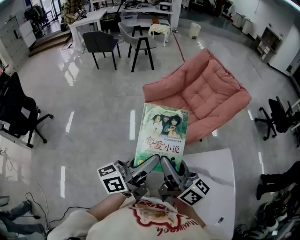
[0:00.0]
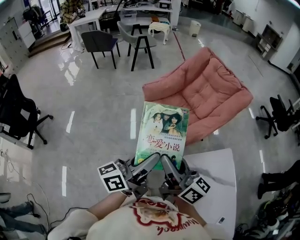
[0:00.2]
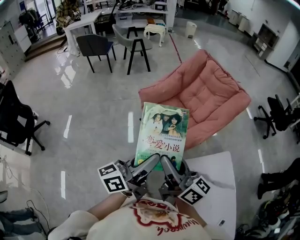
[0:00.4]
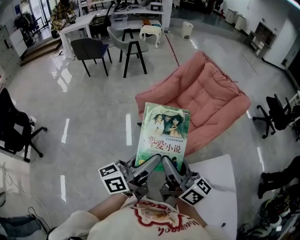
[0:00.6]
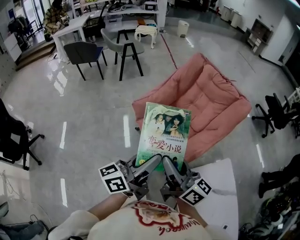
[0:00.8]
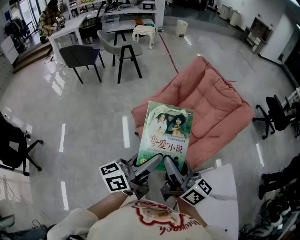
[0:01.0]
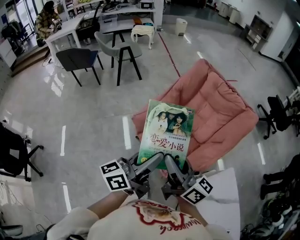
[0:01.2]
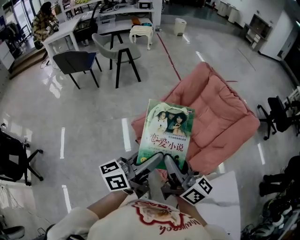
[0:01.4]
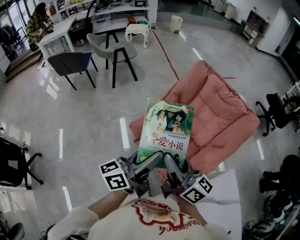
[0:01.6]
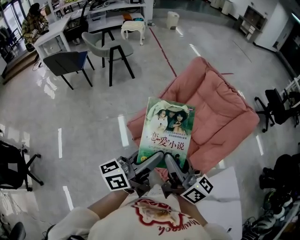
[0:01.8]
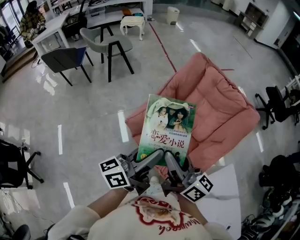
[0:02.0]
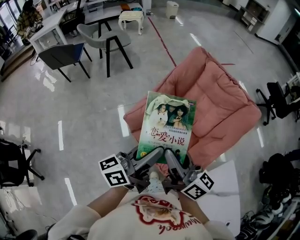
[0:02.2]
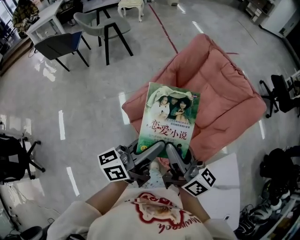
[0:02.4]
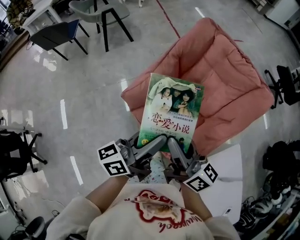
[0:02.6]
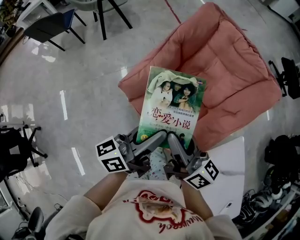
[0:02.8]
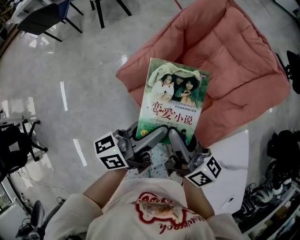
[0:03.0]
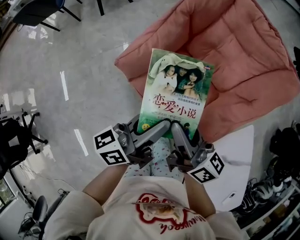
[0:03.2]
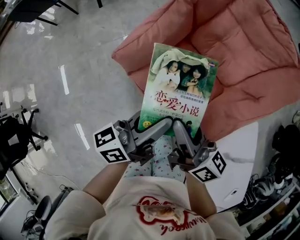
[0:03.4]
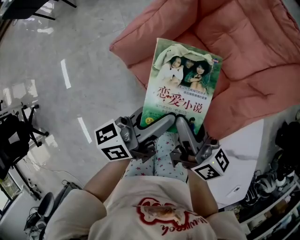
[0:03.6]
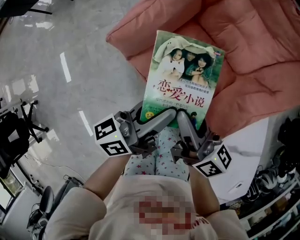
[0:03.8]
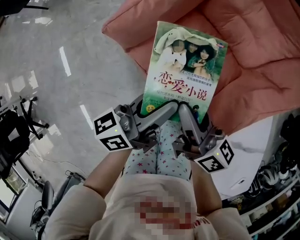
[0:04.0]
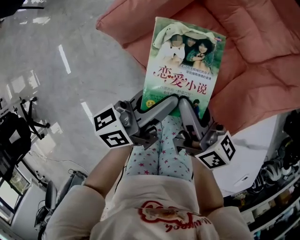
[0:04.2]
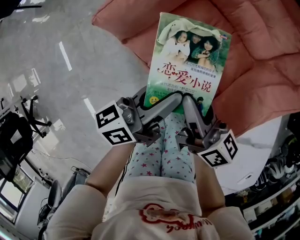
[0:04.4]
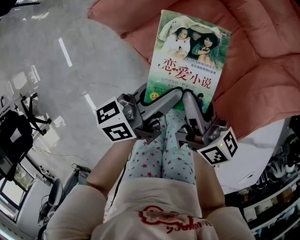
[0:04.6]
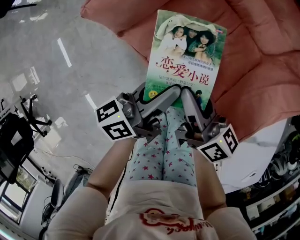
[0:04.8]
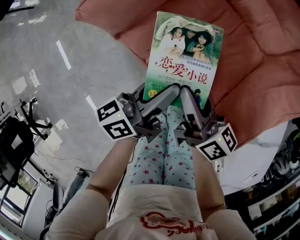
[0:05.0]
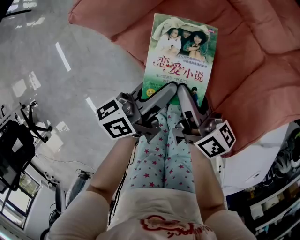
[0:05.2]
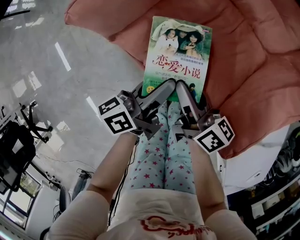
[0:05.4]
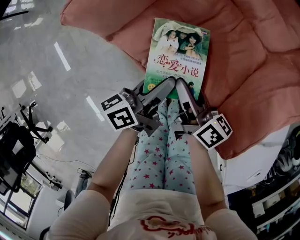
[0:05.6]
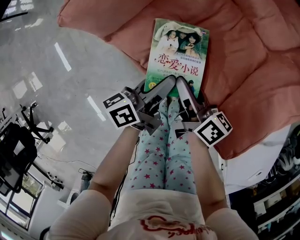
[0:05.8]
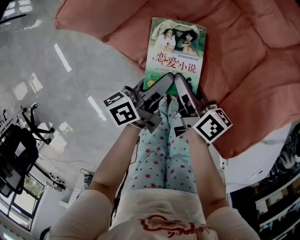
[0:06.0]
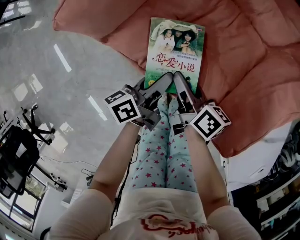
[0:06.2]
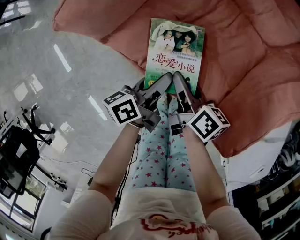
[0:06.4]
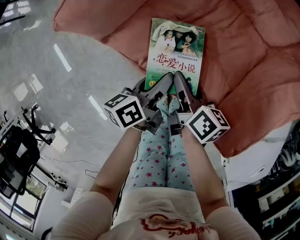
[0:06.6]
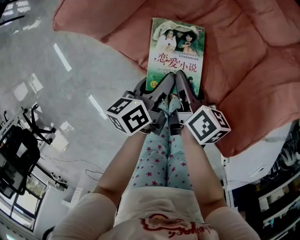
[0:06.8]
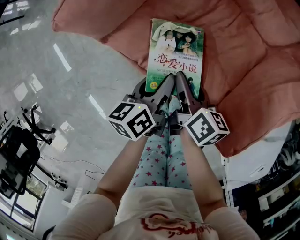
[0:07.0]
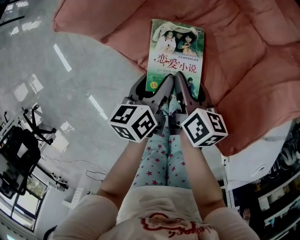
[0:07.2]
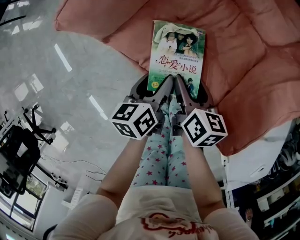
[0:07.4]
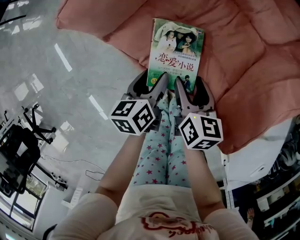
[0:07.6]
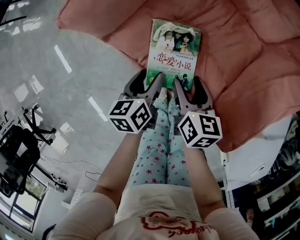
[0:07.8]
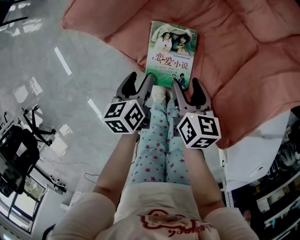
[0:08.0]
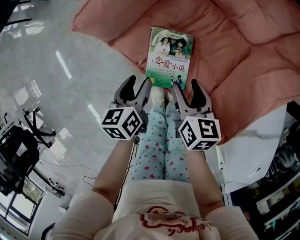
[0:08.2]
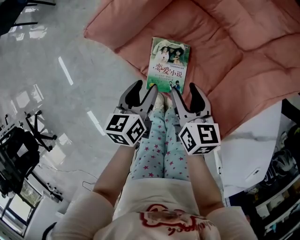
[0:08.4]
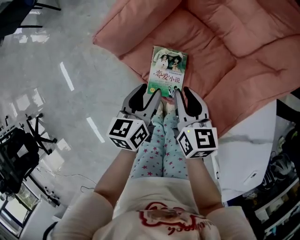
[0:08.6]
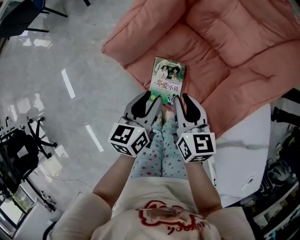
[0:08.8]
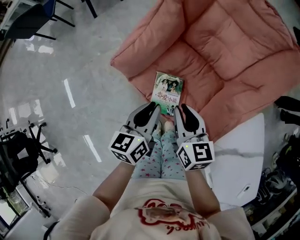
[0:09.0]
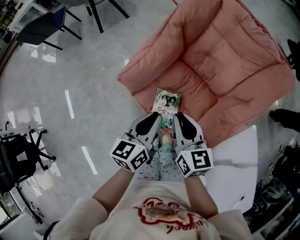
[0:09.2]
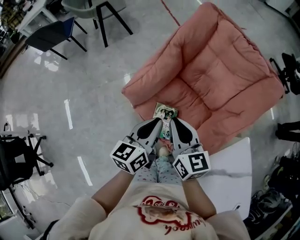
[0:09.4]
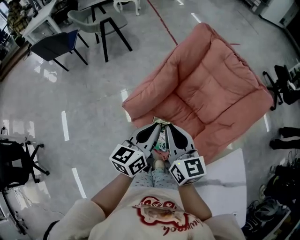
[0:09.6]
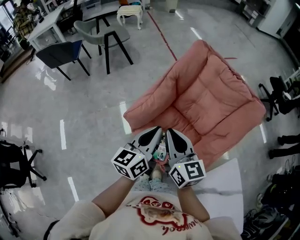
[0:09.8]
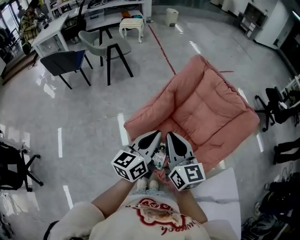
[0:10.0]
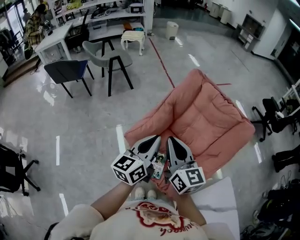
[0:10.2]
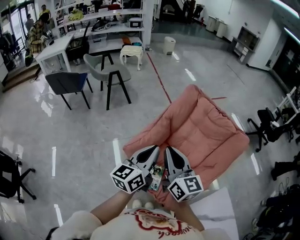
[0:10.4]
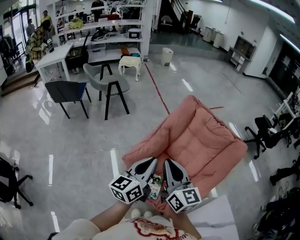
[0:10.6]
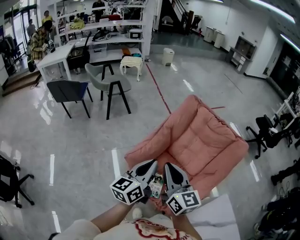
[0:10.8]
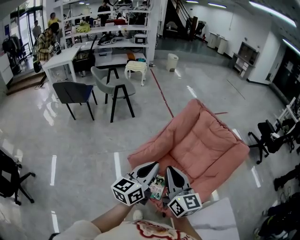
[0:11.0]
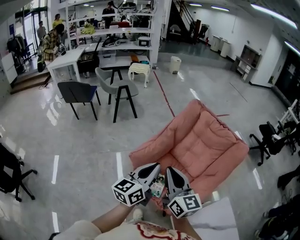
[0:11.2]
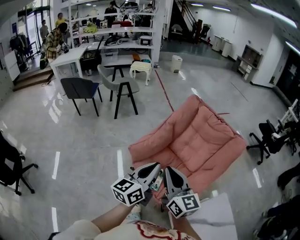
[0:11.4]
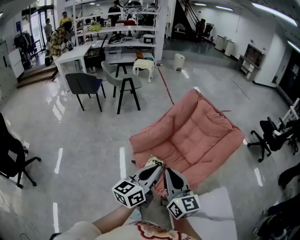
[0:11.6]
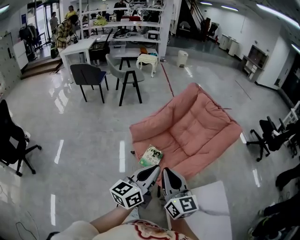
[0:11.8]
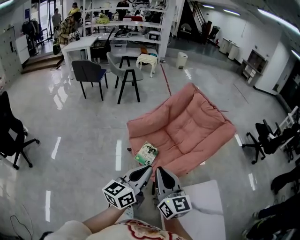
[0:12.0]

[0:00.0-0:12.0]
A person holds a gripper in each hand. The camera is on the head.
0.0 to 1.6 s: The two grippers go about 35 cm forward.
1.6 to 3.0 s: Both grippers move downward, some 10 cm.
3.0 to 4.4 s: The two grippers go about 10 cm upward.
4.4 to 6.0 s: Both grippers move downward, roughly 15 cm. The right gripper changes its angle by about 20 degrees.
6.0 to 7.6 s: The right gripper rotates about 40 degrees, and opens up. Meanwhile the left gripper changes its angle by some 40 degrees, and opens its fingers.
7.6 to 9.0 s: Both grippers travel together upward, some 25 cm. The right gripper turns by about 30 degrees, and closes its fingers, while the left gripper changes its angle by roughly 20 degrees, and closes.
9.0 to 10.4 s: The grippers both shift upward by some 35 cm. The left gripper rotates about 30 degrees, while the right gripper rotates approximately 30 degrees.
10.4 to 12.0 s: Both grippers travel together backward, some 35 cm.

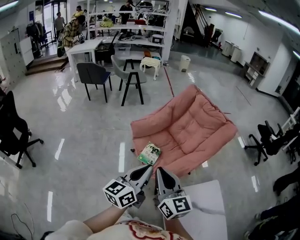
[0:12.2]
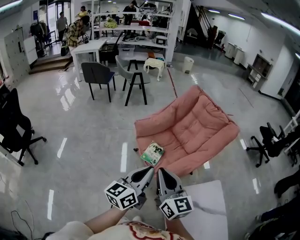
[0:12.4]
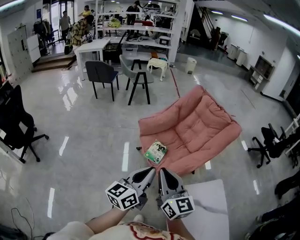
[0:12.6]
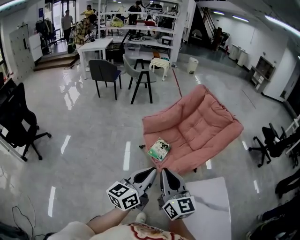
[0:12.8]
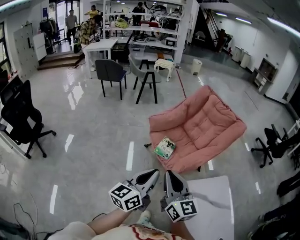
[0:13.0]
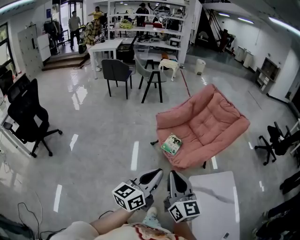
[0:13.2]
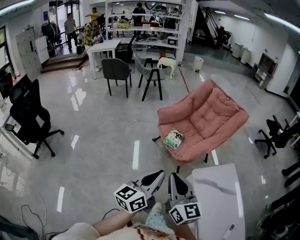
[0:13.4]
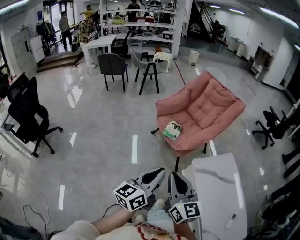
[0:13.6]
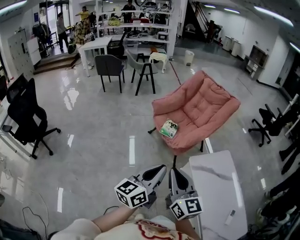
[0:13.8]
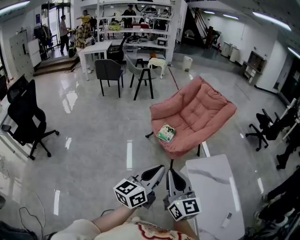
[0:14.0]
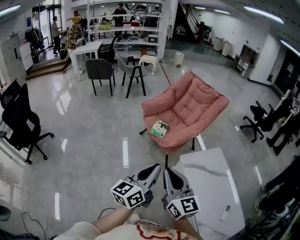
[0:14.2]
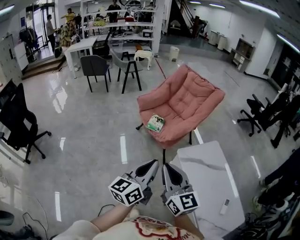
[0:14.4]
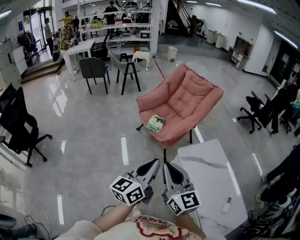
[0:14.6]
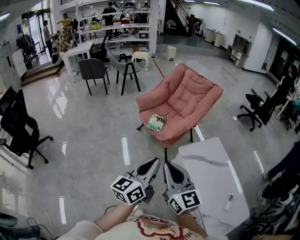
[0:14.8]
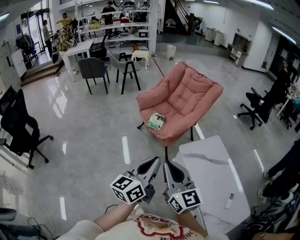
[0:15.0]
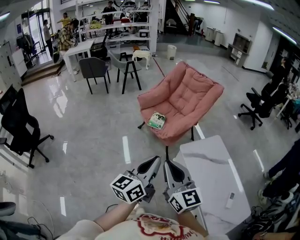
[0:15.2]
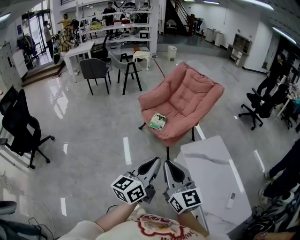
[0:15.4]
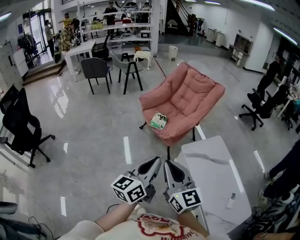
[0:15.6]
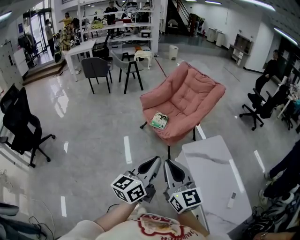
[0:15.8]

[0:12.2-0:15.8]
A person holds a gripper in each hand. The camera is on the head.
12.2 to 14.0 s: Both grippers move backward, roughly 35 cm.
14.0 to 15.8 s: The right gripper moves approximately 5 cm.

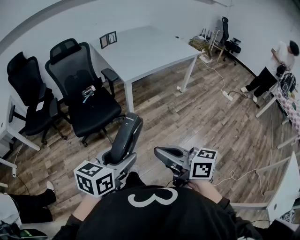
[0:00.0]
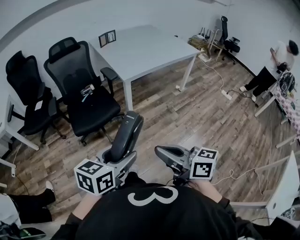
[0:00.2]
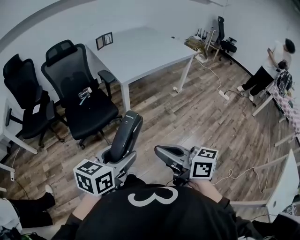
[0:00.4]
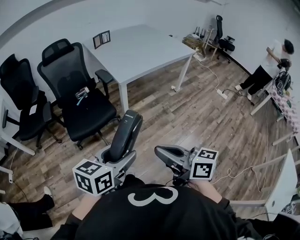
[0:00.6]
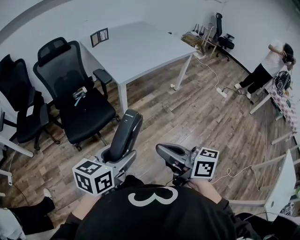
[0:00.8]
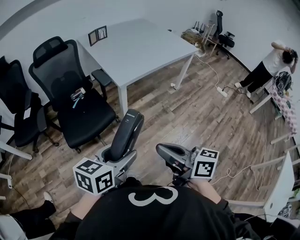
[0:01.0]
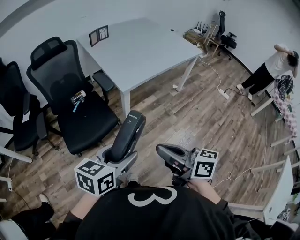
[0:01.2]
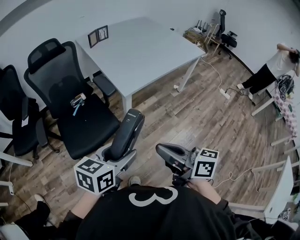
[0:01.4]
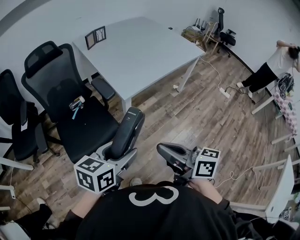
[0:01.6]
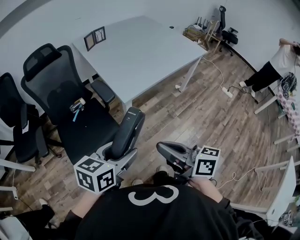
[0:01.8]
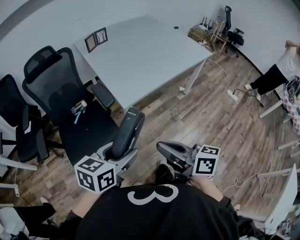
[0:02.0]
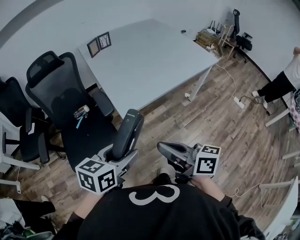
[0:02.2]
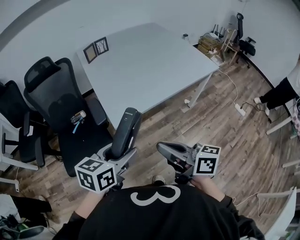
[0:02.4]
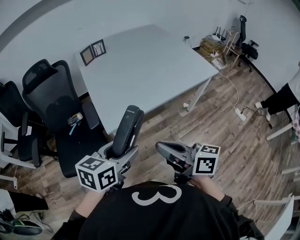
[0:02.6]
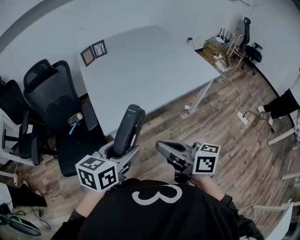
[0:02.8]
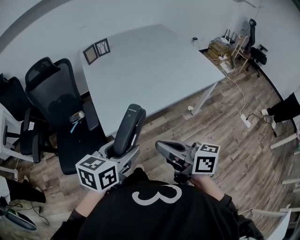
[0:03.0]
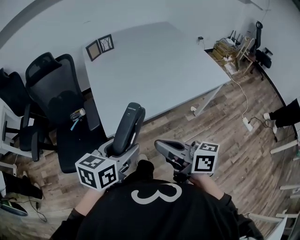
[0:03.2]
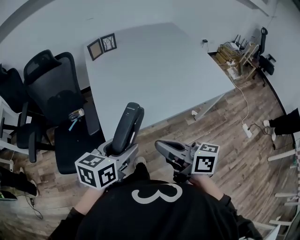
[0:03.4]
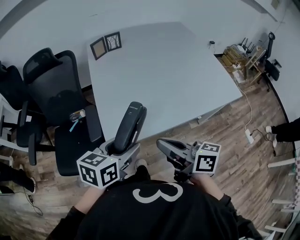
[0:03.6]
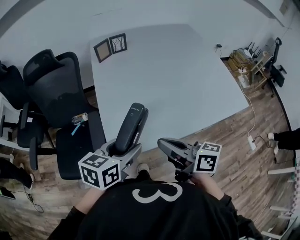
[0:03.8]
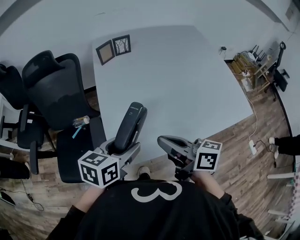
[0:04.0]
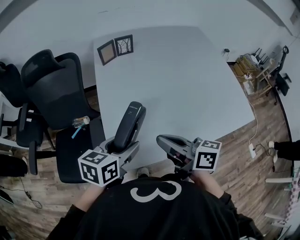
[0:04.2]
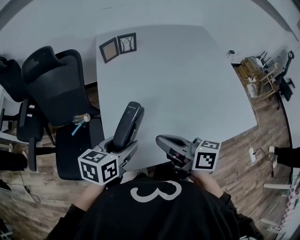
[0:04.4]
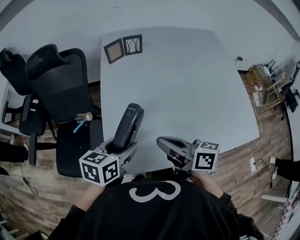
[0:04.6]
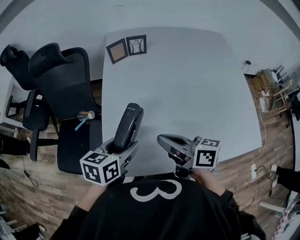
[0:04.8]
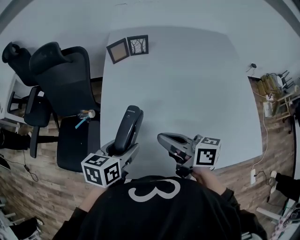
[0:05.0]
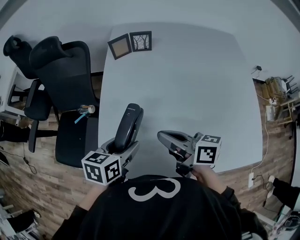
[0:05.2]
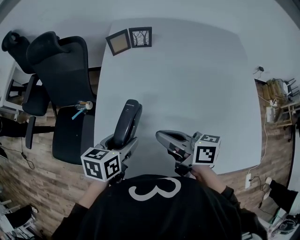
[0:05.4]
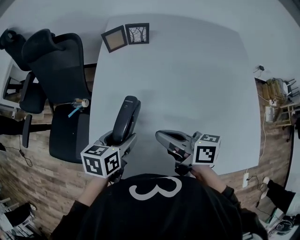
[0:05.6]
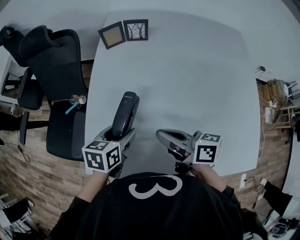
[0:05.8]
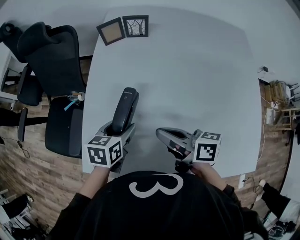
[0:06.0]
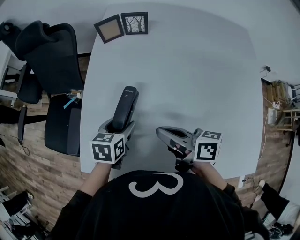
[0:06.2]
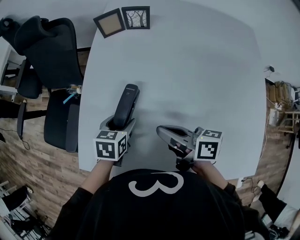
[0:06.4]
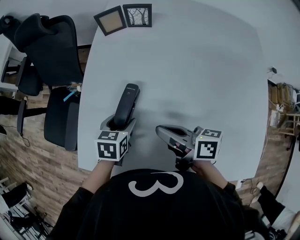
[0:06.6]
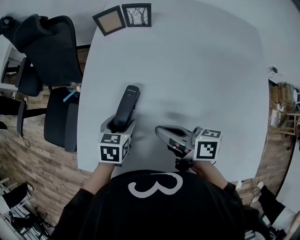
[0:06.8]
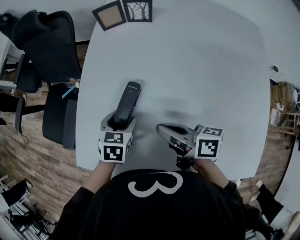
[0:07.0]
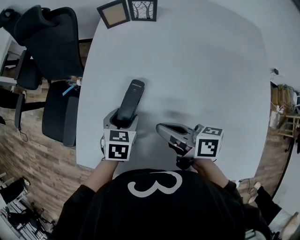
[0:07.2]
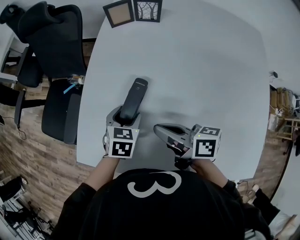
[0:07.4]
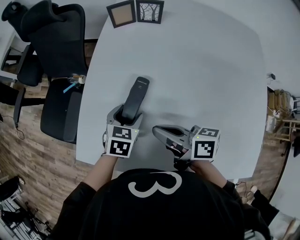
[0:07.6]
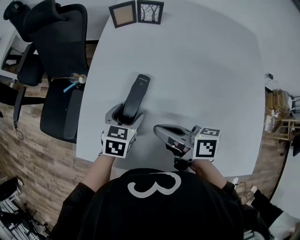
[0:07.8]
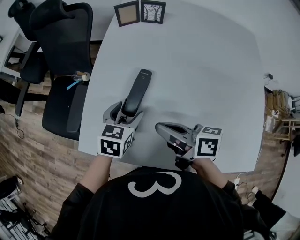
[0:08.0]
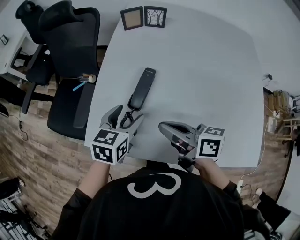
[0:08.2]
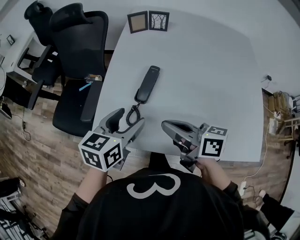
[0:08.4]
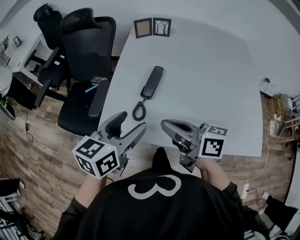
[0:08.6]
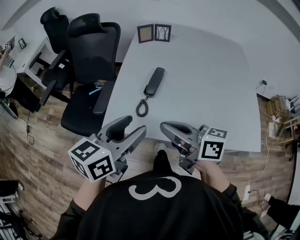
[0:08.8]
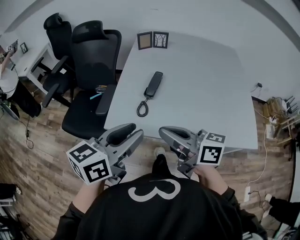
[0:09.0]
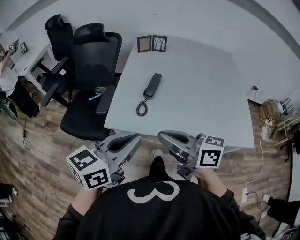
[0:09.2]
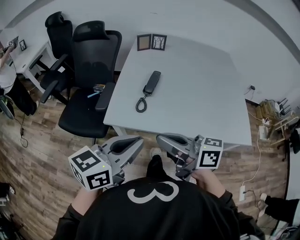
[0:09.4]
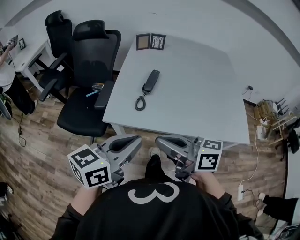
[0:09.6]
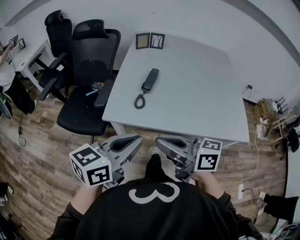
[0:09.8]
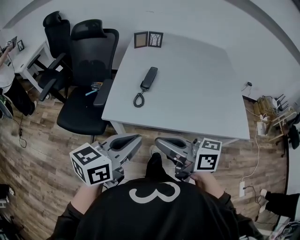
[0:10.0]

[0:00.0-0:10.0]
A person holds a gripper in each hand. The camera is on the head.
0.0 to 1.4 s: Both grippers move forward, about 25 cm.
1.4 to 2.8 s: Both grippers move forward and to the right, roughly 30 cm.
2.8 to 4.2 s: Both grippers travel together forward, approximately 30 cm.
4.2 to 5.8 s: Both grippers move forward, to the right and downward, some 15 cm. The right gripper rotates some 20 degrees. Meanwhile the left gripper rotates approximately 30 degrees.
5.8 to 7.2 s: The right gripper travels downward by approximately 5 cm. Meanwhile the left gripper is displaced downward by some 10 cm, and swivels about 20 degrees.
7.2 to 8.6 s: The right gripper travels backward, upward and to the left by about 20 cm. Meanwhile the left gripper shifts some 30 cm upward, backward and to the left, and tilts its fingers roughly 30 degrees upward.
8.6 to 10.0 s: Both grippers move backward, approximately 20 cm. The left gripper closes up.
